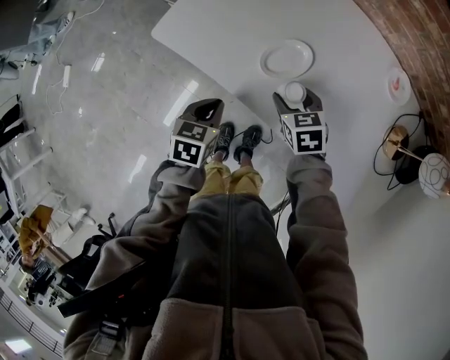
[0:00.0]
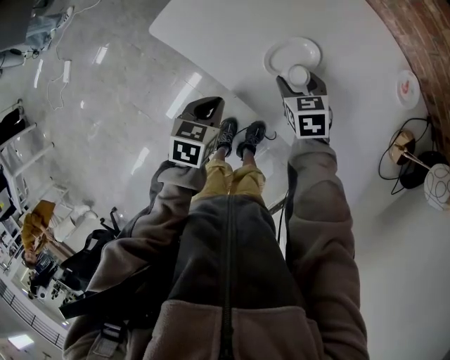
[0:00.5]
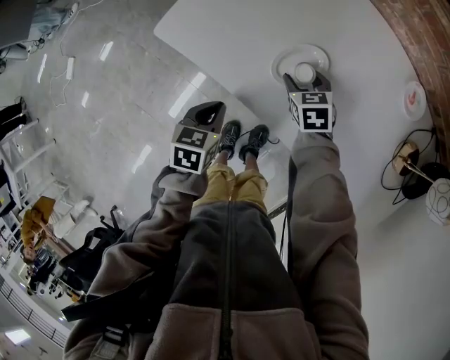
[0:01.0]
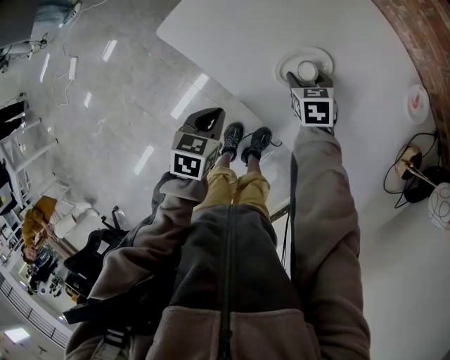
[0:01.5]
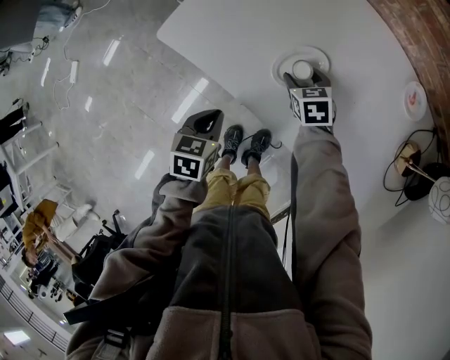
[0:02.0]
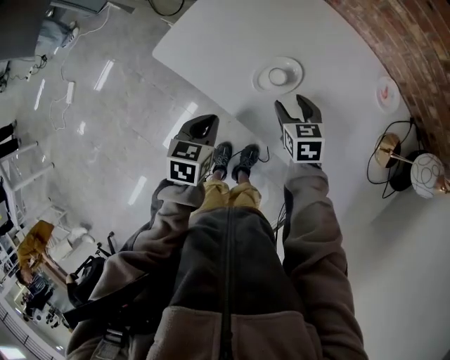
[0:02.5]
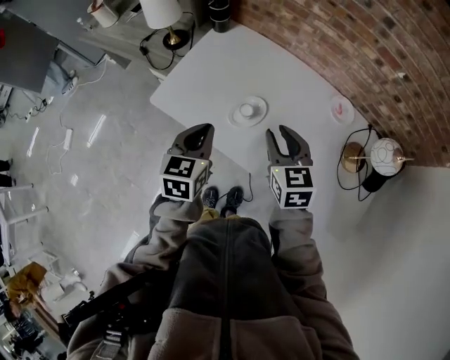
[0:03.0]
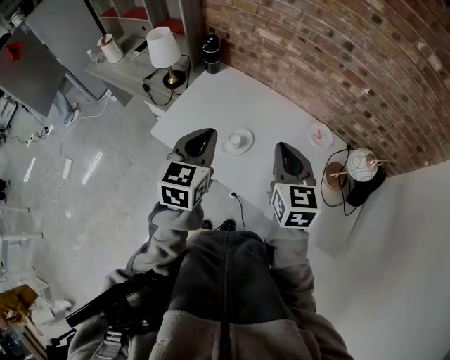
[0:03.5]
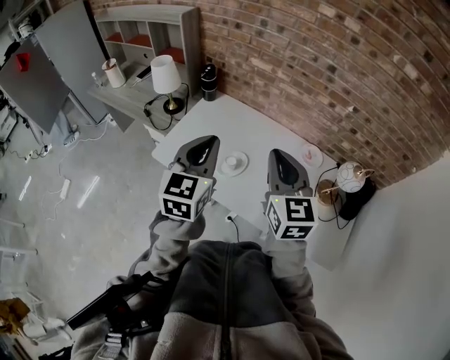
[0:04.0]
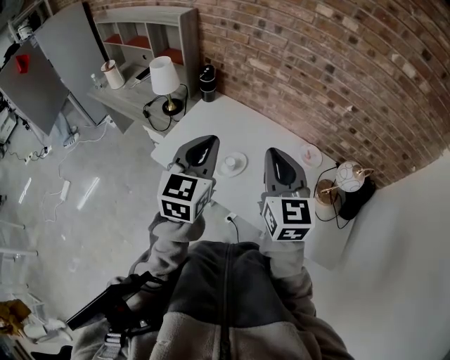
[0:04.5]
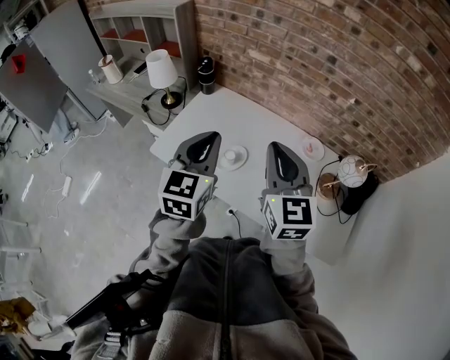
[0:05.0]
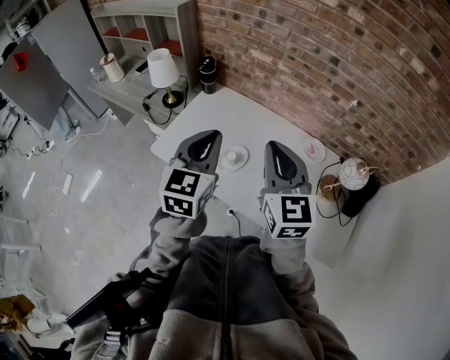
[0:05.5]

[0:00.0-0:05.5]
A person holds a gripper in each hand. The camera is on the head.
0:00.0 to 0:02.0: The right gripper heads forward and downward, covering about 10 cm.
0:02.0 to 0:03.5: The two grippers go approximately 40 cm upward. The right gripper angles its fingers upward, by roughly 40 degrees, and closes, while the left gripper tips its fingers upward by approximately 40 degrees.
0:03.5 to 0:05.5: The two grippers go roughly 10 cm upward.

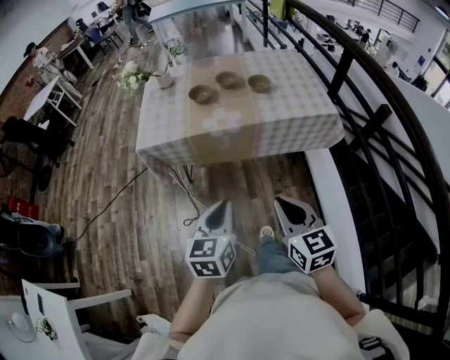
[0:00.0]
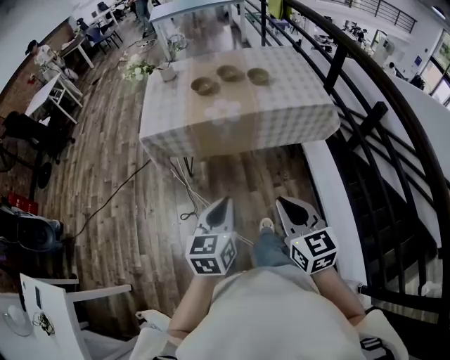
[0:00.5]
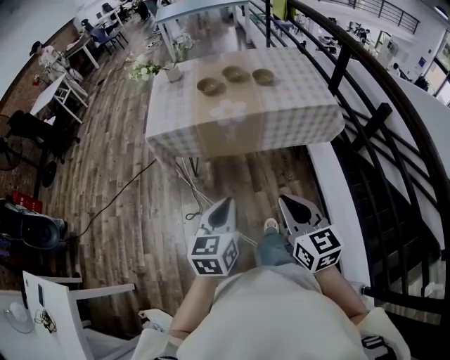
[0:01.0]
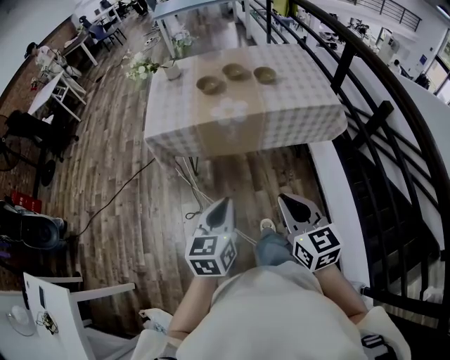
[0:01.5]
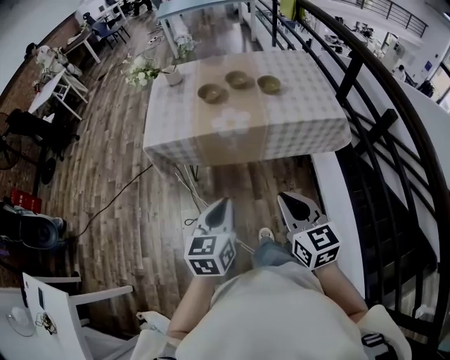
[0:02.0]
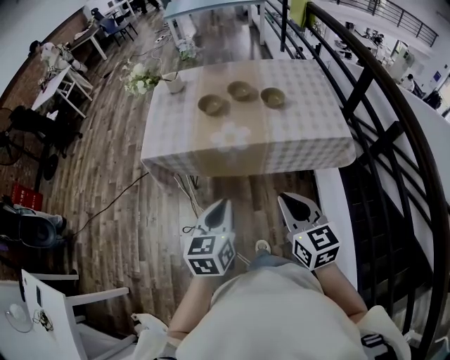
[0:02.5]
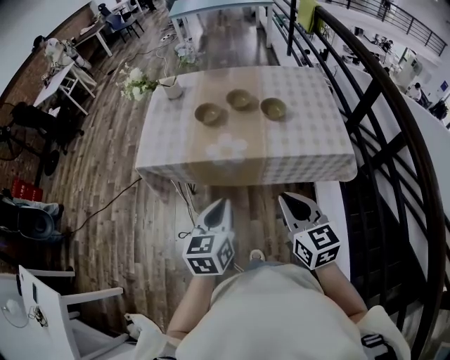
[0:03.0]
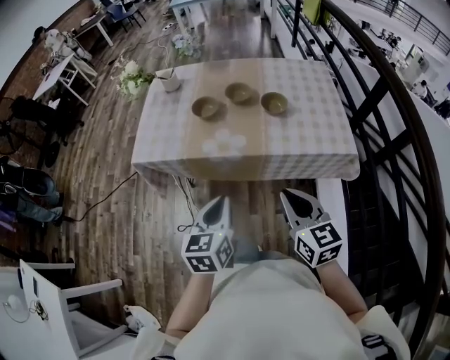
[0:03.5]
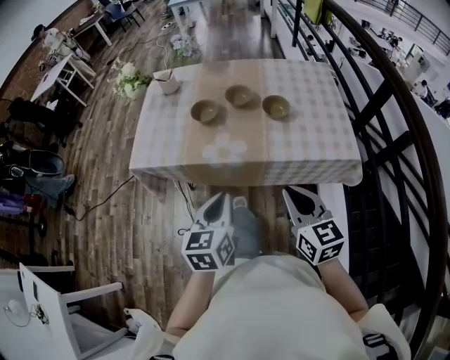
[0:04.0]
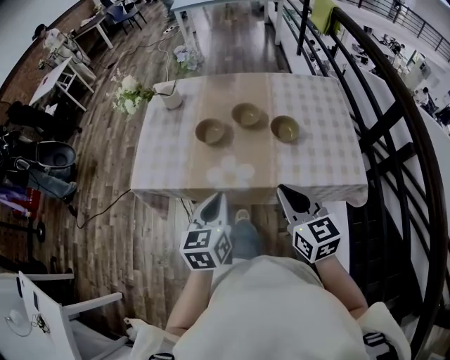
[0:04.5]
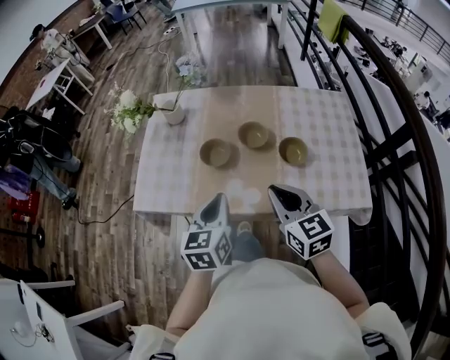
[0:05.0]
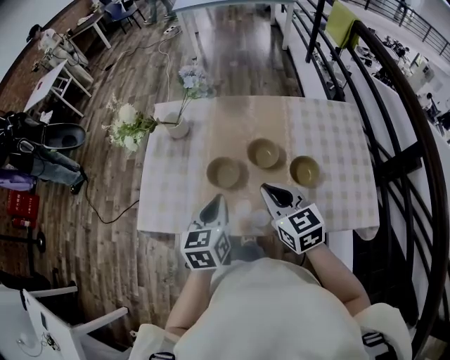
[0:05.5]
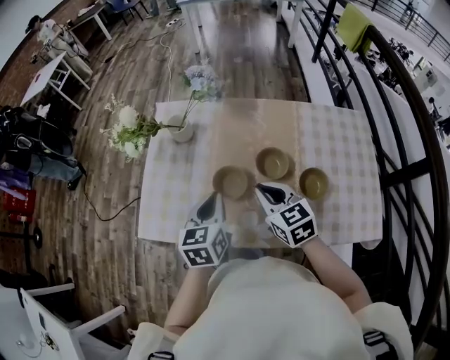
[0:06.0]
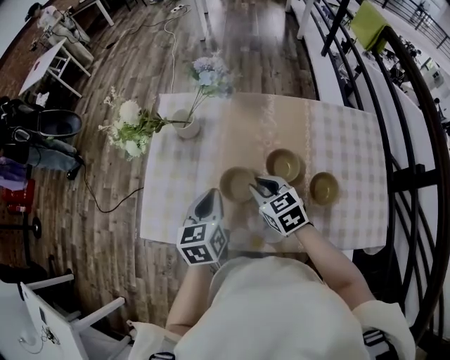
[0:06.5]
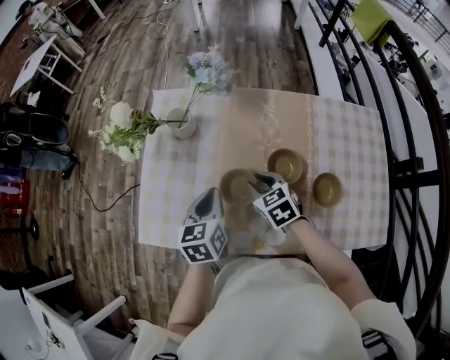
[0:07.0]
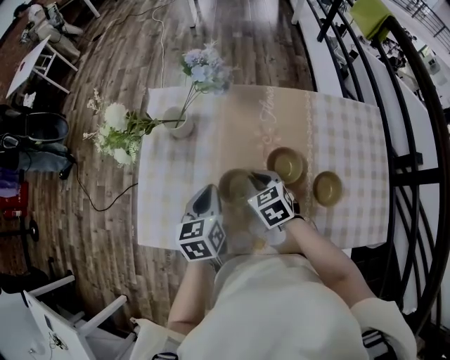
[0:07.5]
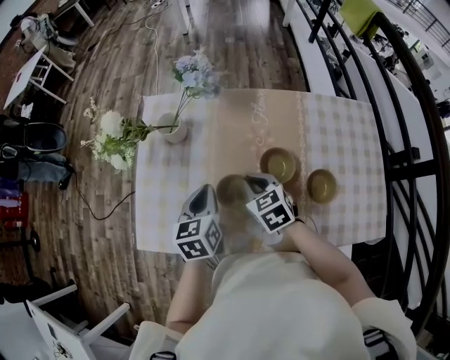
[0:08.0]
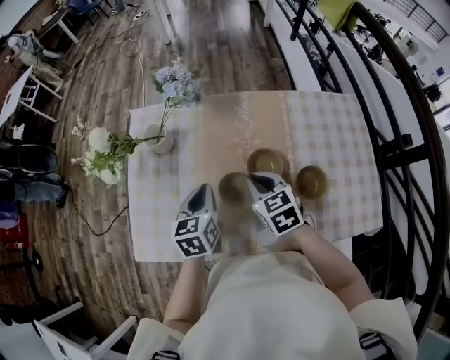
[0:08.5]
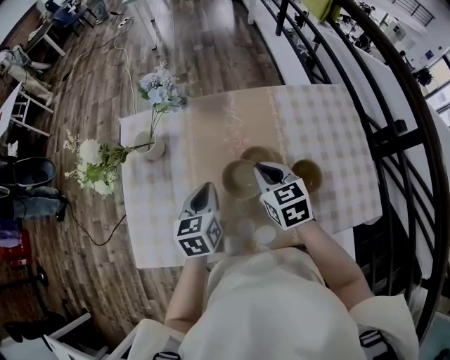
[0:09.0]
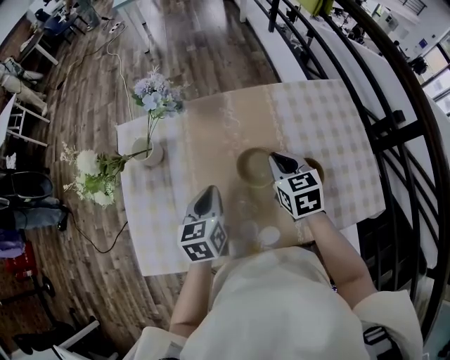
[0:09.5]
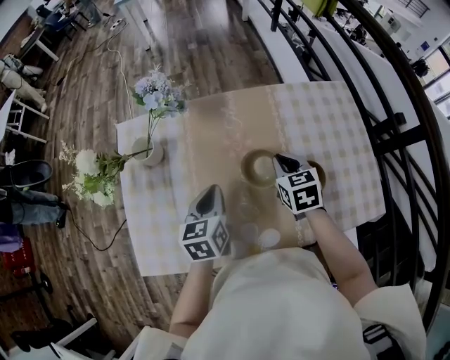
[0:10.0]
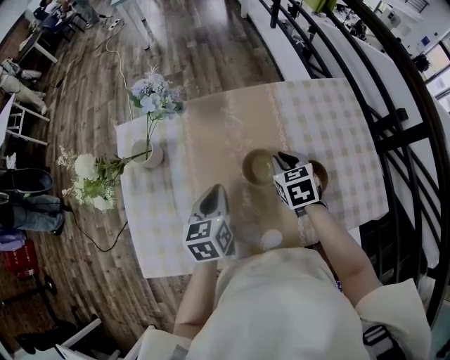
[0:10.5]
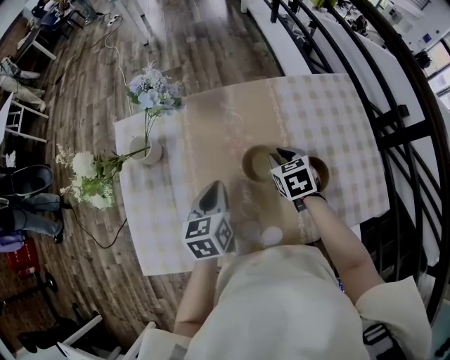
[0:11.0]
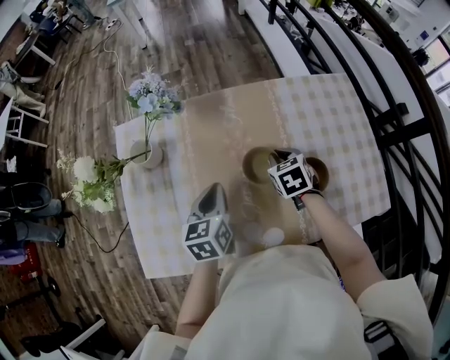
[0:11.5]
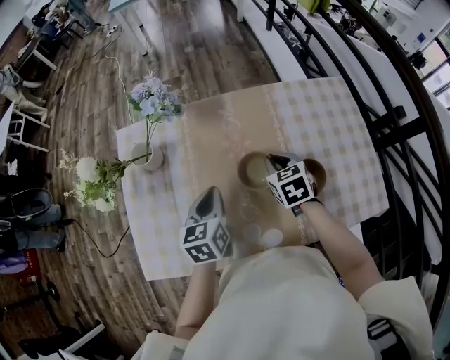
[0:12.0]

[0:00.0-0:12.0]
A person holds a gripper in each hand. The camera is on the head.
0:00.0 to 0:02.0: The right gripper reaches approximately 5 cm backward, then returns.
0:02.0 to 0:04.0: The two grippers go some 15 cm forward and to the right.
0:04.0 to 0:06.0: Both grippers travel together forward, roughly 25 cm.
0:06.0 to 0:08.0: The left gripper goes some 10 cm forward and downward; the right gripper moves downward and forward, approximately 10 cm, and opens, then closes once more.
0:08.0 to 0:10.0: The right gripper goes about 15 cm to the right, and rotates about 30 degrees. The left gripper heads to the right, covering roughly 5 cm.
0:10.0 to 0:12.0: The grippers move only a little.

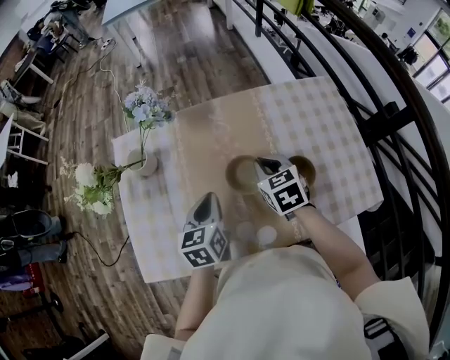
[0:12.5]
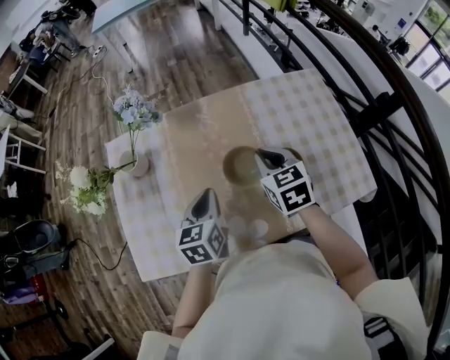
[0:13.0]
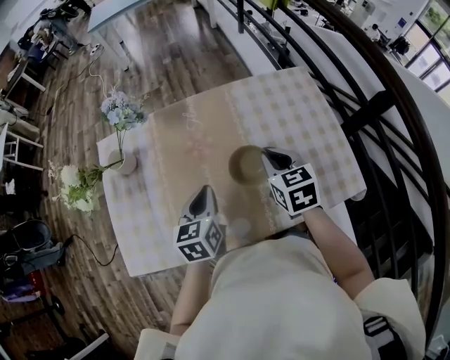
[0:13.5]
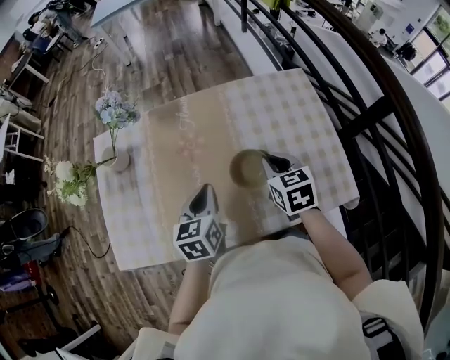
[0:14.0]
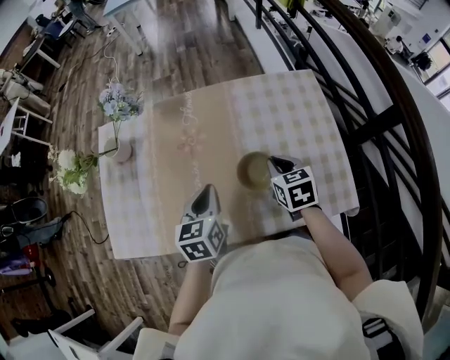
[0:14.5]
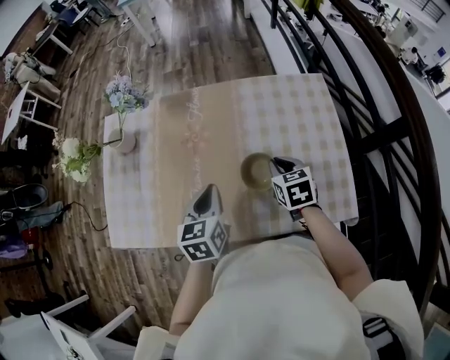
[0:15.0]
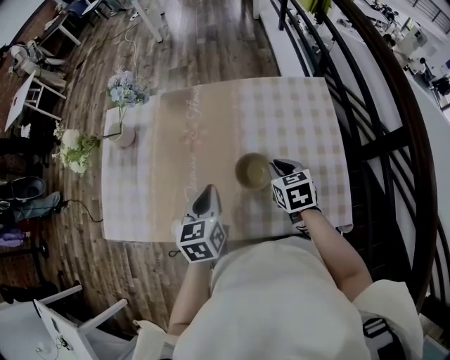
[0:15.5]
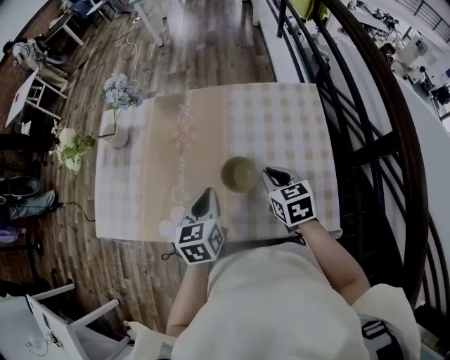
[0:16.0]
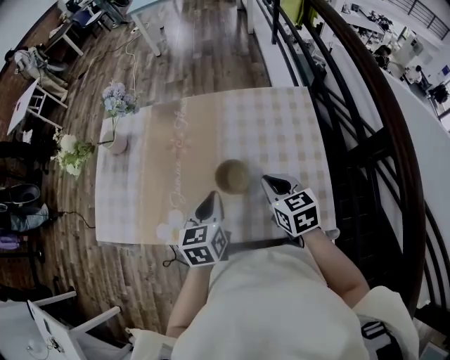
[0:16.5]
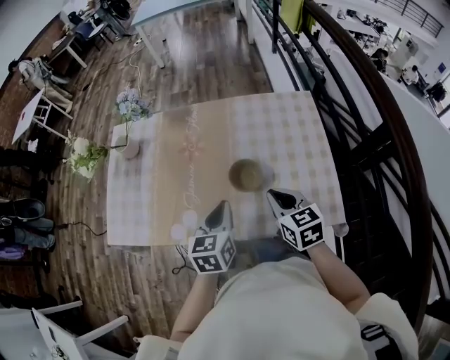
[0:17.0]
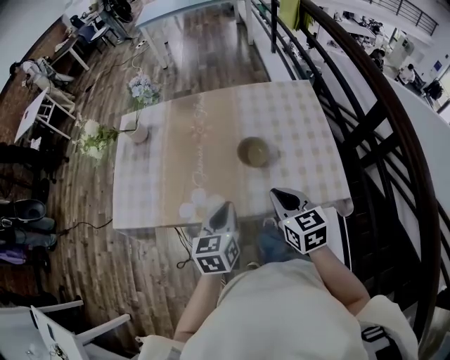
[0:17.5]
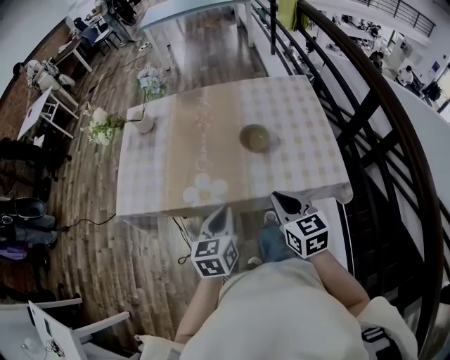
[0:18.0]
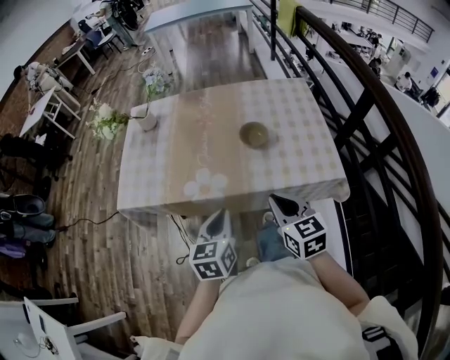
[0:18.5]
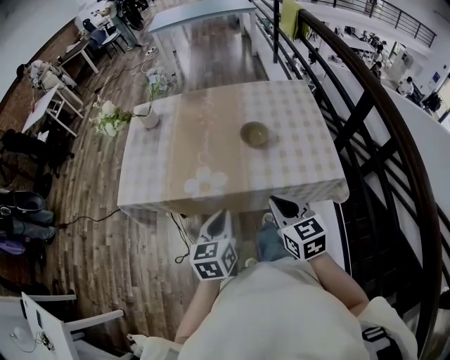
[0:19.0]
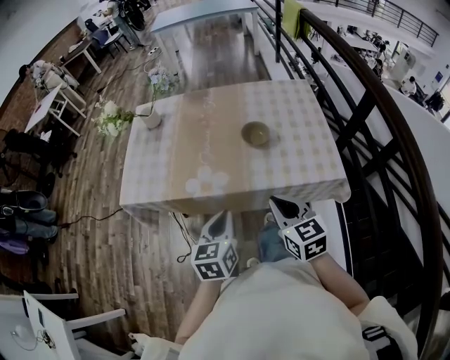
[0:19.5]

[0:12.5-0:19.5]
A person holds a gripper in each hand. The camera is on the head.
0:12.5 to 0:14.5: The grippers both shift to the right by some 15 cm.
0:14.5 to 0:16.0: The left gripper is displaced to the right by about 5 cm.
0:16.0 to 0:17.5: The left gripper goes approximately 15 cm backward; the right gripper travels backward and to the left by about 20 cm.
0:17.5 to 0:19.5: Both grippers move backward, about 5 cm.

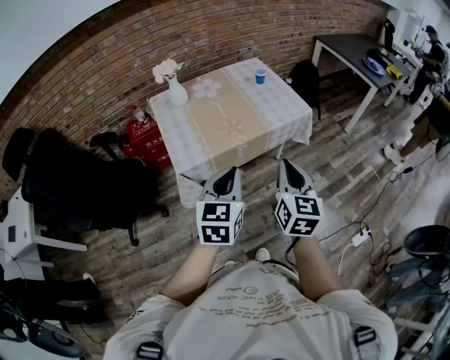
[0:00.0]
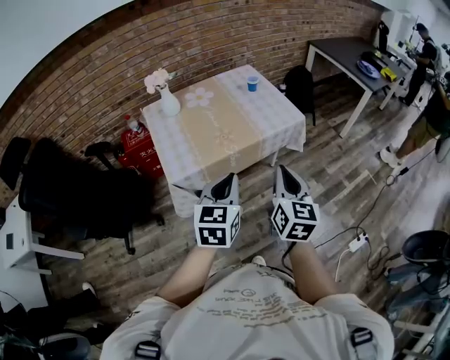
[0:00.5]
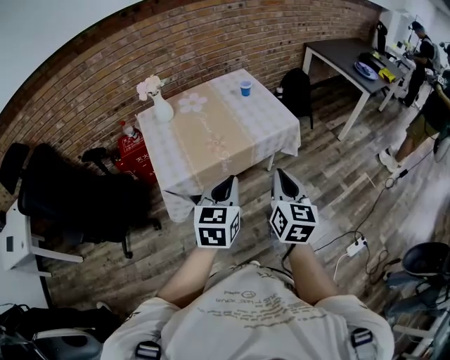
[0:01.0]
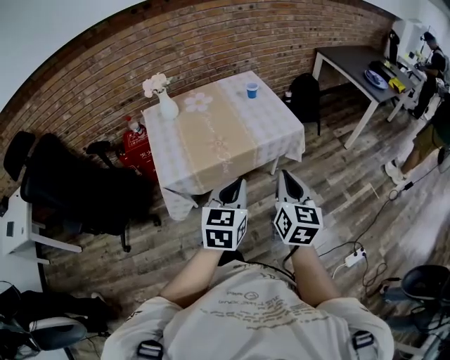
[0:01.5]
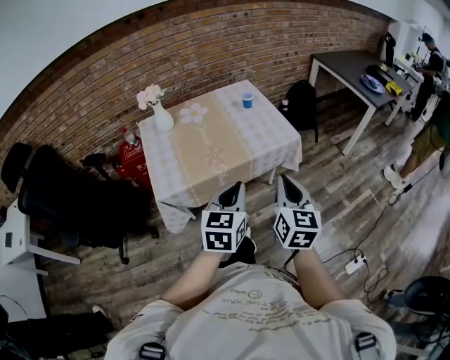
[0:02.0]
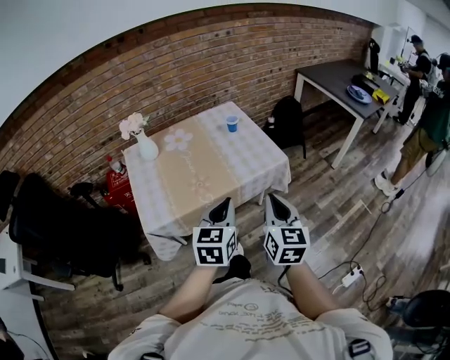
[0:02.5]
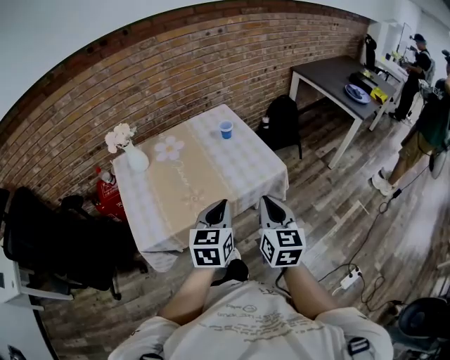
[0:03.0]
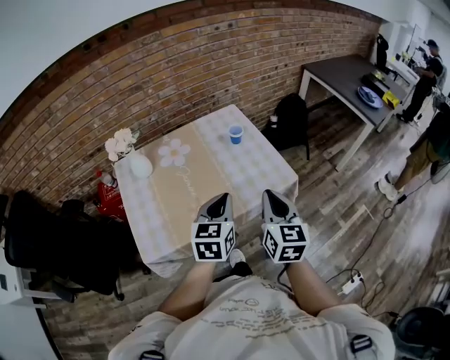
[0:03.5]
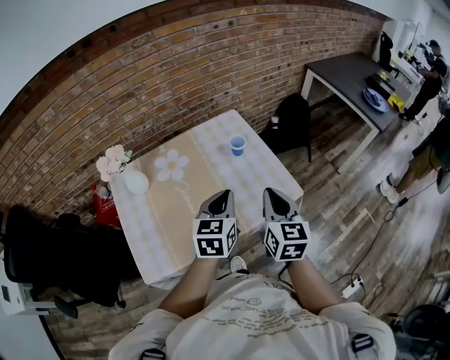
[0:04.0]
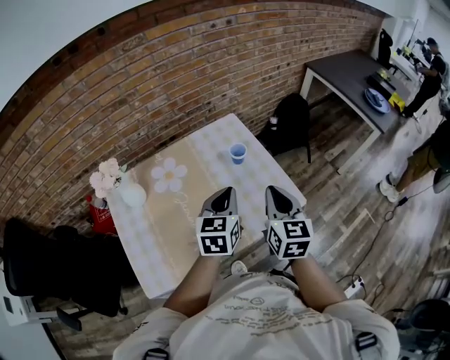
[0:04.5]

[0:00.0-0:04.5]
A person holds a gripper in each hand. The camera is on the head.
0:00.0 to 0:02.0: The grippers both shift to the right and forward by roughly 15 cm.
0:02.0 to 0:04.5: The two grippers travel together, forward, approximately 40 cm.
